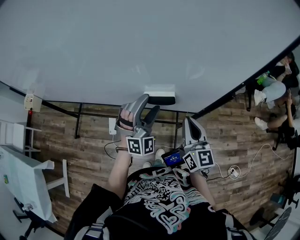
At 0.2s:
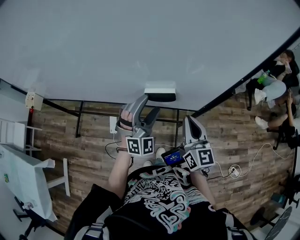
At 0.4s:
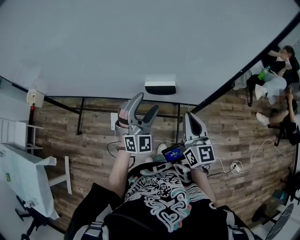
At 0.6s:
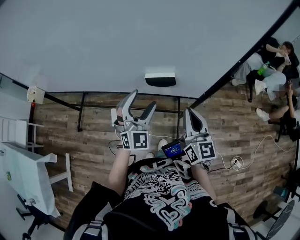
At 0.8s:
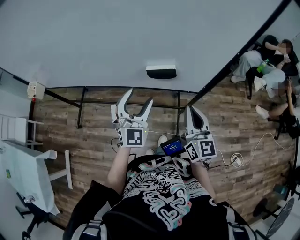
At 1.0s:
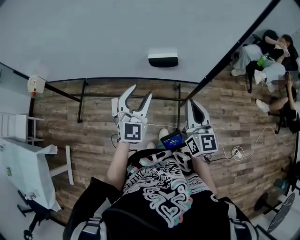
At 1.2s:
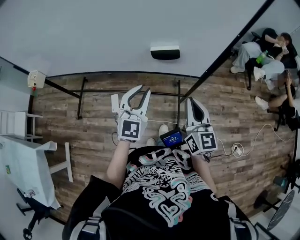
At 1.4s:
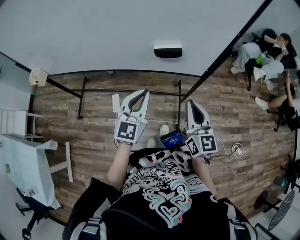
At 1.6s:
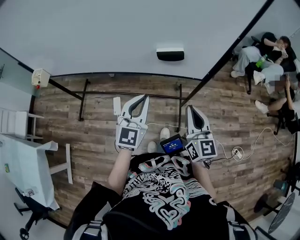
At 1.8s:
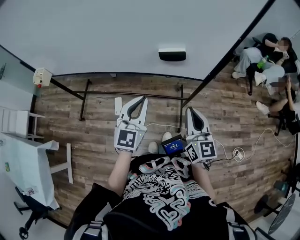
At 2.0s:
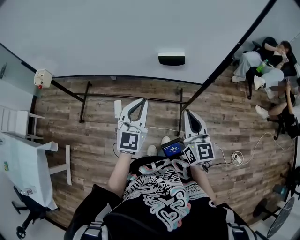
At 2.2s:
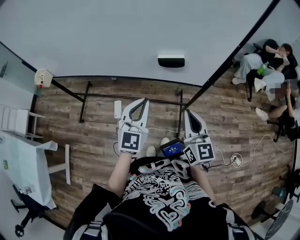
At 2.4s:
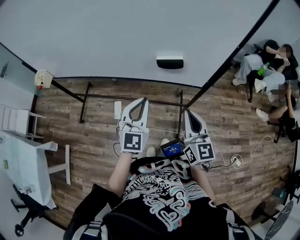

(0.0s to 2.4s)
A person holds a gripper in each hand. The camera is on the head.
0.0s - 1.2s: The left gripper moves backward and to the left, roughly 15 cm, rolls counterclockwise, seen from behind, by roughly 40 degrees, and closes its fingers, while the right gripper shifts roughly 10 cm backward.
1.2s - 2.4s: There are only small adjustments of the grippers.

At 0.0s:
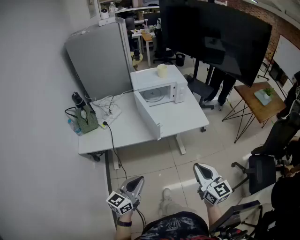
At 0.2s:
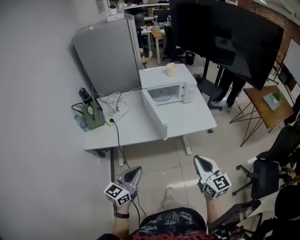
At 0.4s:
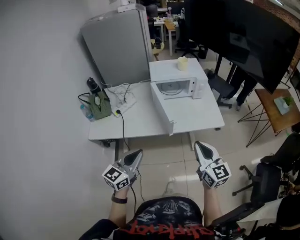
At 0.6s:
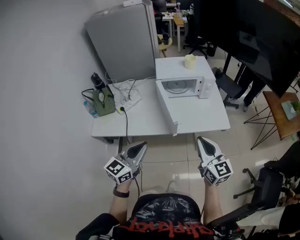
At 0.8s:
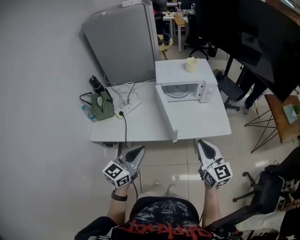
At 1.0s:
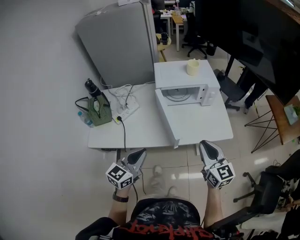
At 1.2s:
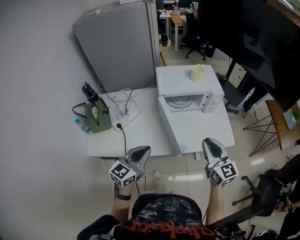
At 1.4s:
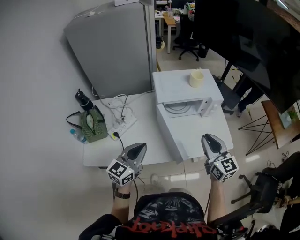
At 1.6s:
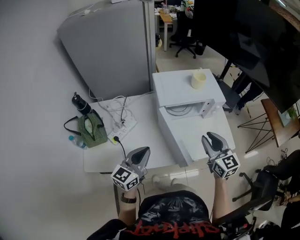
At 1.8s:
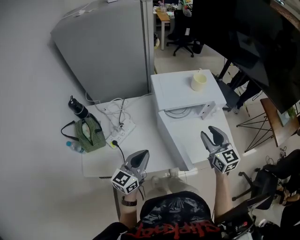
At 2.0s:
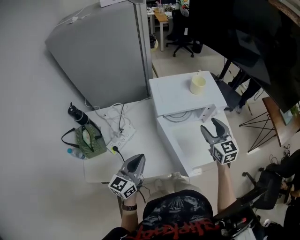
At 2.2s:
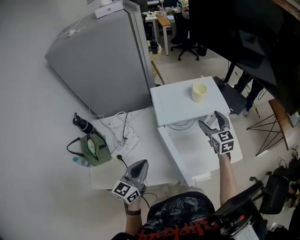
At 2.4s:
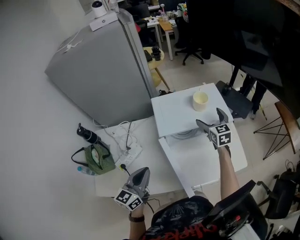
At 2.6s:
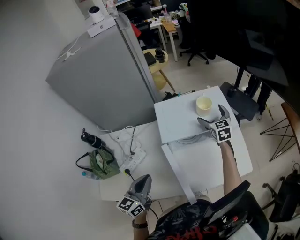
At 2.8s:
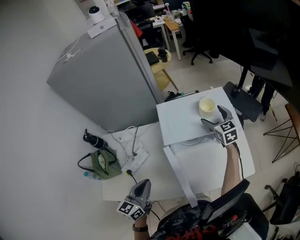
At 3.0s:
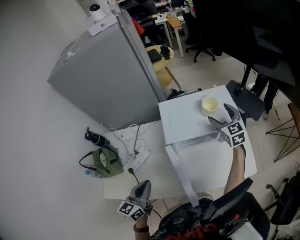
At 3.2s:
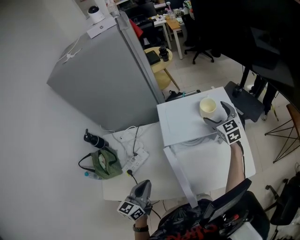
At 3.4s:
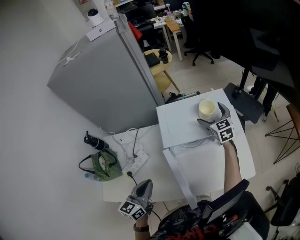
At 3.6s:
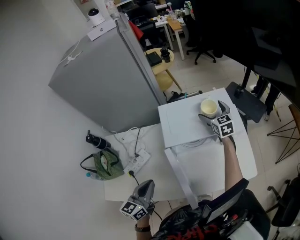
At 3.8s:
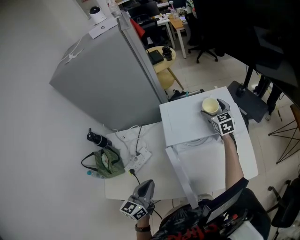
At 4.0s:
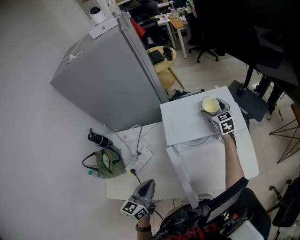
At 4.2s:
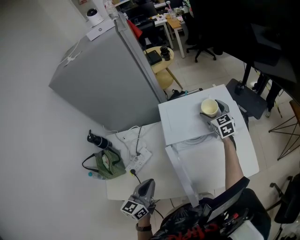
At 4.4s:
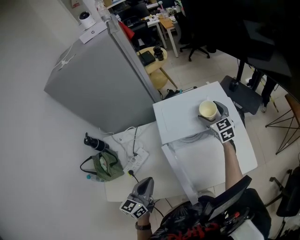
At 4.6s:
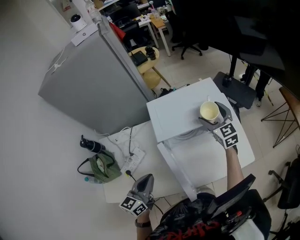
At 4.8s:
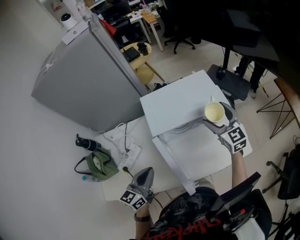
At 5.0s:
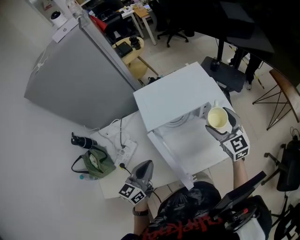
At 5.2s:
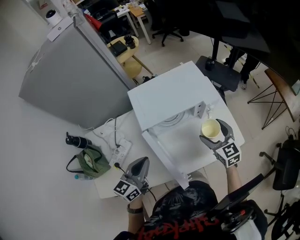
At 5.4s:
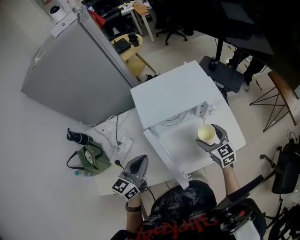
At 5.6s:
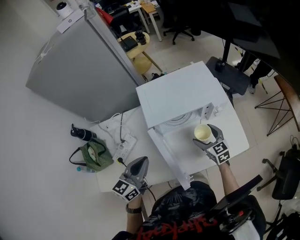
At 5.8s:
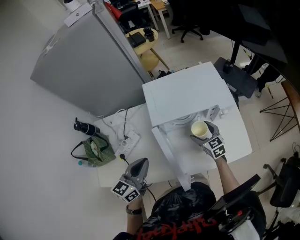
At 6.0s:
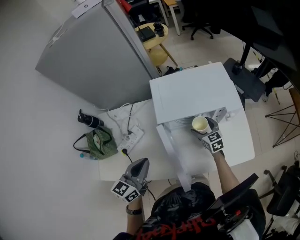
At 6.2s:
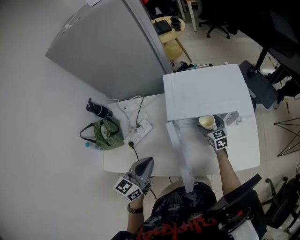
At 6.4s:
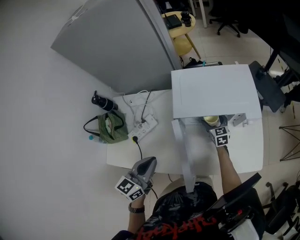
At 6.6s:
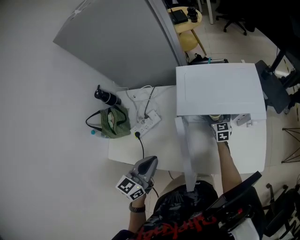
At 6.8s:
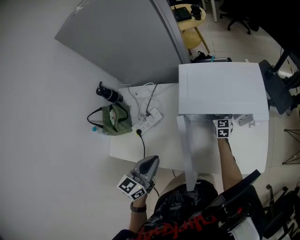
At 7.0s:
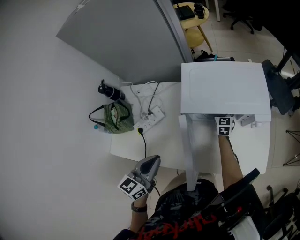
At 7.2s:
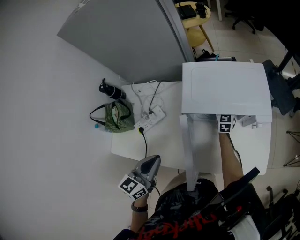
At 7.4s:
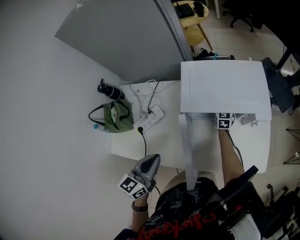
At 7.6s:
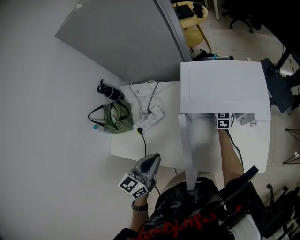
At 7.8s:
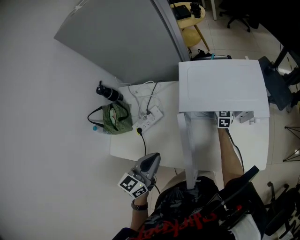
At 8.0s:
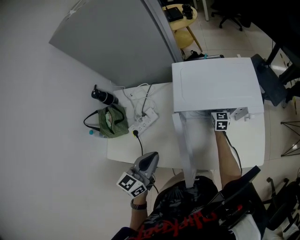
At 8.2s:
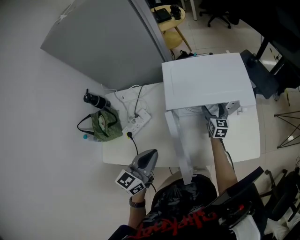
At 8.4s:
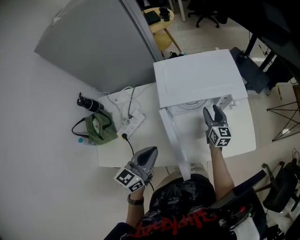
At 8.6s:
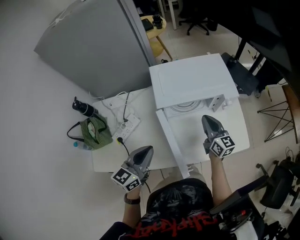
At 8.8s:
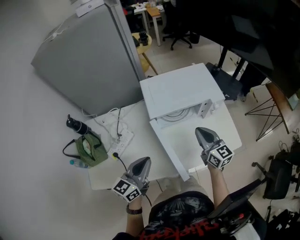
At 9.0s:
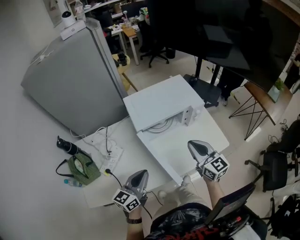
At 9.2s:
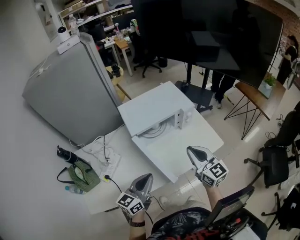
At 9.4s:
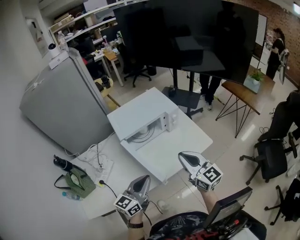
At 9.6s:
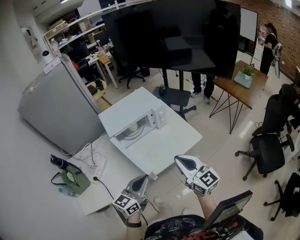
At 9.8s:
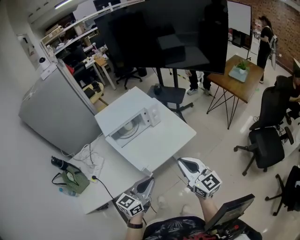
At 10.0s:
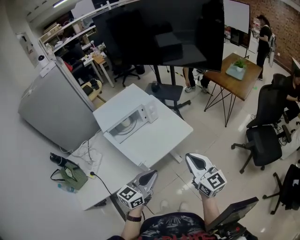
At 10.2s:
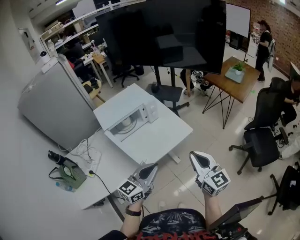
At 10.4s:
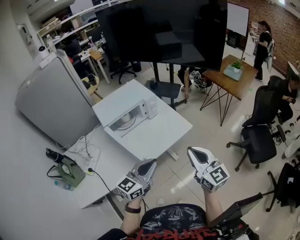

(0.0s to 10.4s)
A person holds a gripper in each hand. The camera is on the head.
0.0s - 1.4s: The pair of grippers is taken forward, approximately 40 cm.
1.4s - 3.0s: The right gripper is displaced forward by approximately 35 cm, and opens. The left gripper travels forward by some 10 cm, and changes its angle by roughly 20 degrees.
4.4s - 6.0s: The right gripper is displaced downward and backward by approximately 20 cm.
6.0s - 7.4s: The right gripper travels forward by roughly 15 cm.
7.4s - 9.0s: The right gripper goes some 40 cm backward and upward, and closes up. The left gripper shifts by approximately 5 cm, and turns by about 30 degrees.
9.0s - 10.4s: The right gripper goes roughly 30 cm to the right and backward. The left gripper goes some 25 cm to the right, and rotates some 30 degrees.

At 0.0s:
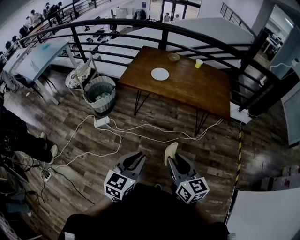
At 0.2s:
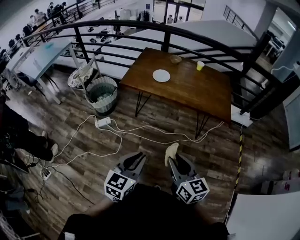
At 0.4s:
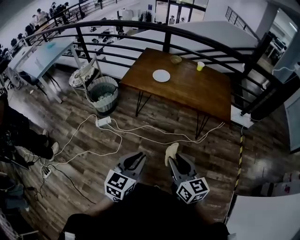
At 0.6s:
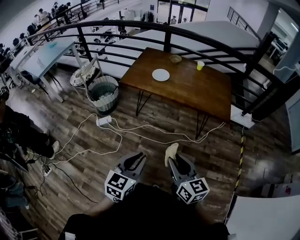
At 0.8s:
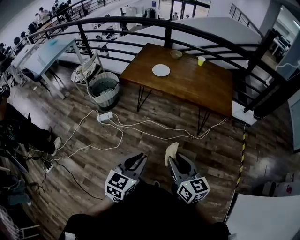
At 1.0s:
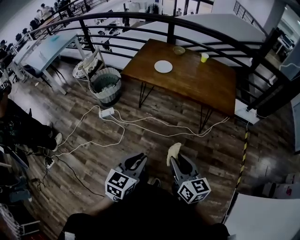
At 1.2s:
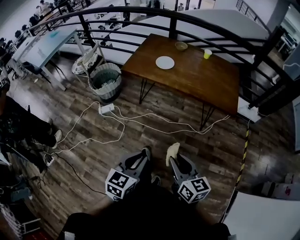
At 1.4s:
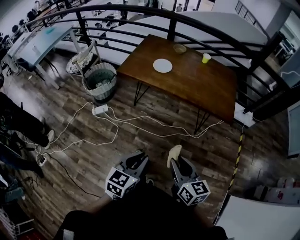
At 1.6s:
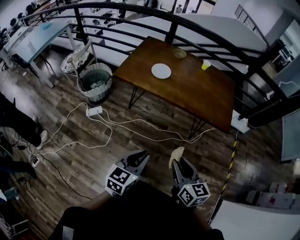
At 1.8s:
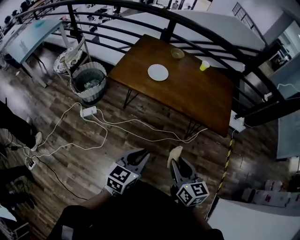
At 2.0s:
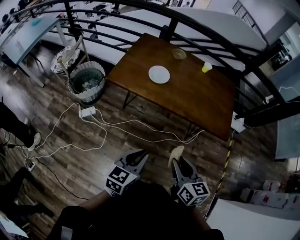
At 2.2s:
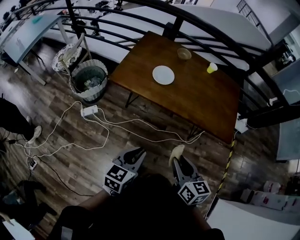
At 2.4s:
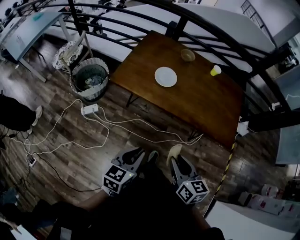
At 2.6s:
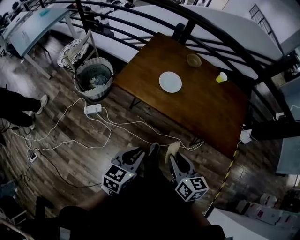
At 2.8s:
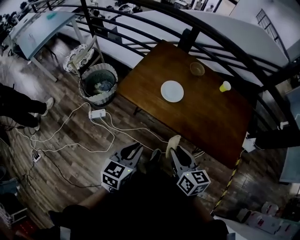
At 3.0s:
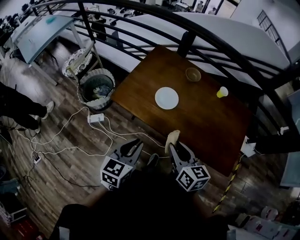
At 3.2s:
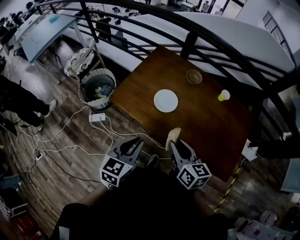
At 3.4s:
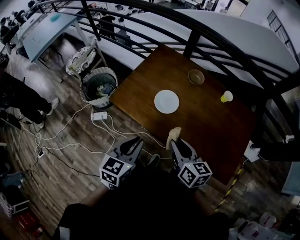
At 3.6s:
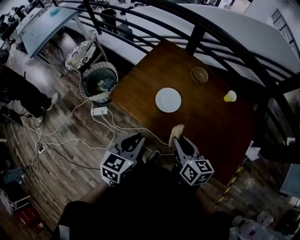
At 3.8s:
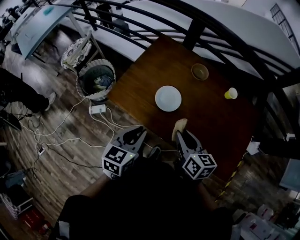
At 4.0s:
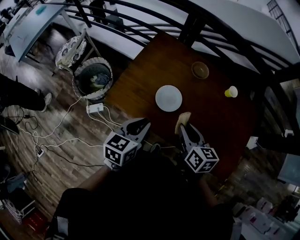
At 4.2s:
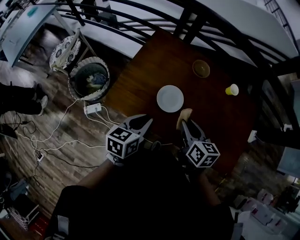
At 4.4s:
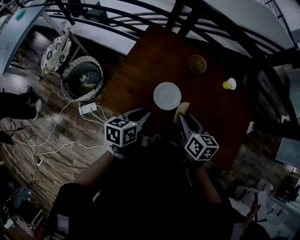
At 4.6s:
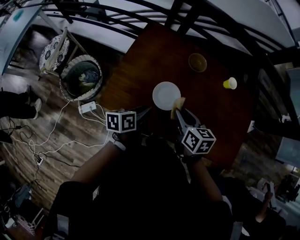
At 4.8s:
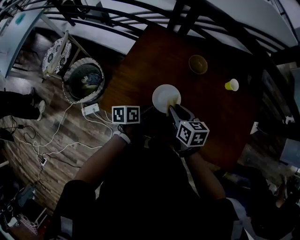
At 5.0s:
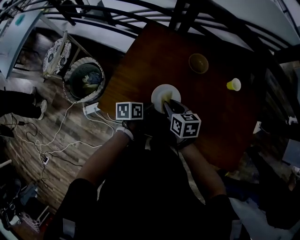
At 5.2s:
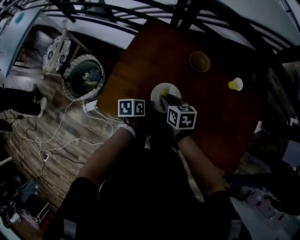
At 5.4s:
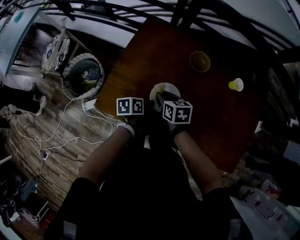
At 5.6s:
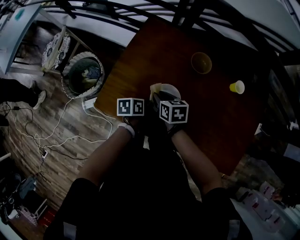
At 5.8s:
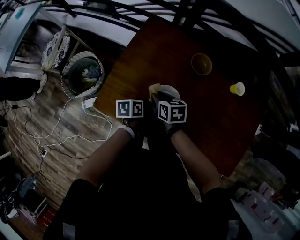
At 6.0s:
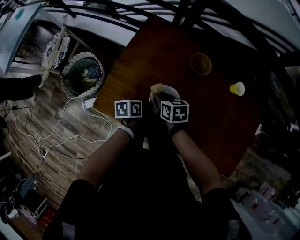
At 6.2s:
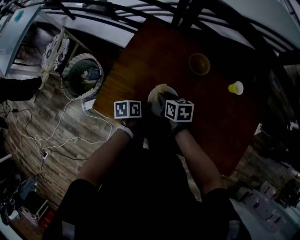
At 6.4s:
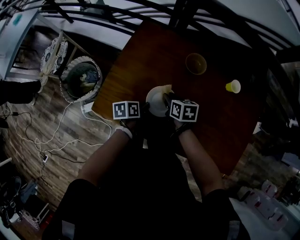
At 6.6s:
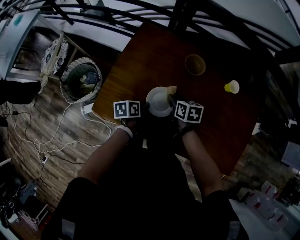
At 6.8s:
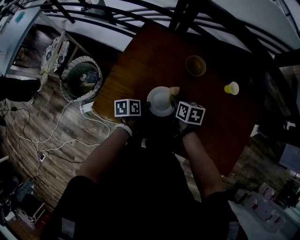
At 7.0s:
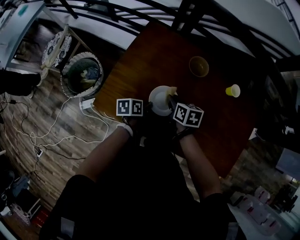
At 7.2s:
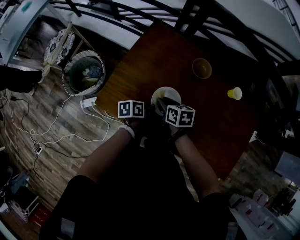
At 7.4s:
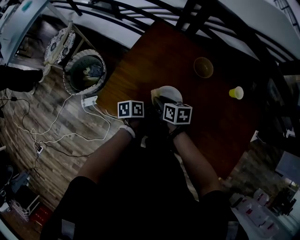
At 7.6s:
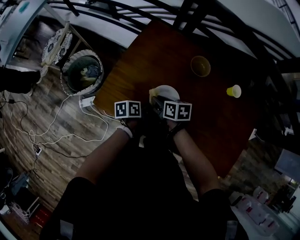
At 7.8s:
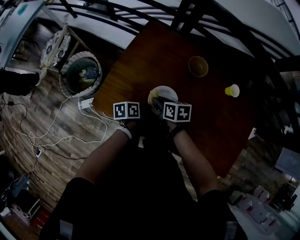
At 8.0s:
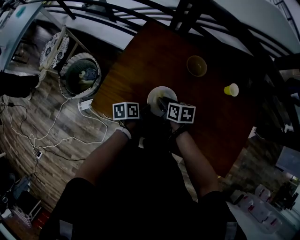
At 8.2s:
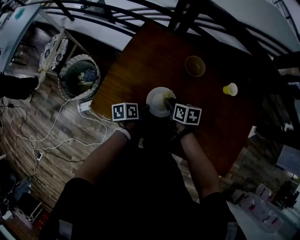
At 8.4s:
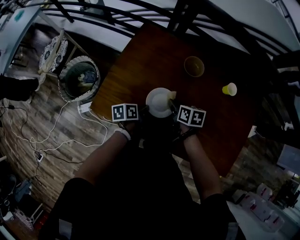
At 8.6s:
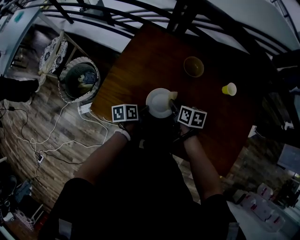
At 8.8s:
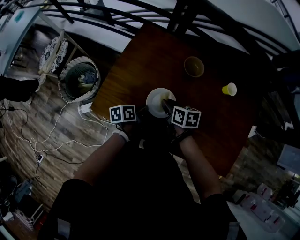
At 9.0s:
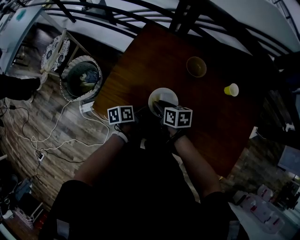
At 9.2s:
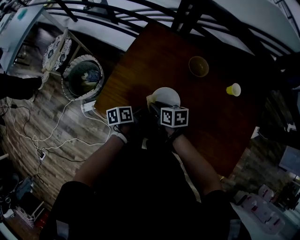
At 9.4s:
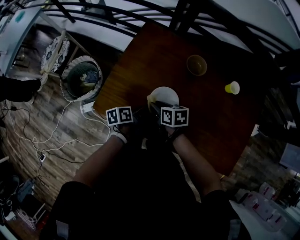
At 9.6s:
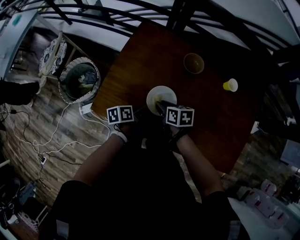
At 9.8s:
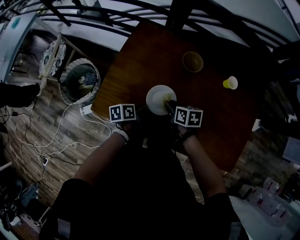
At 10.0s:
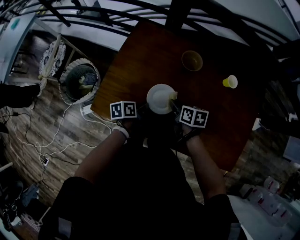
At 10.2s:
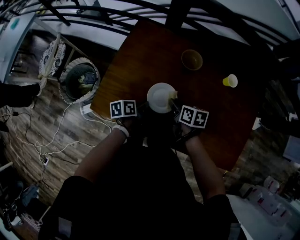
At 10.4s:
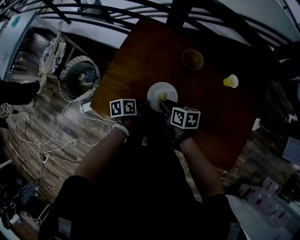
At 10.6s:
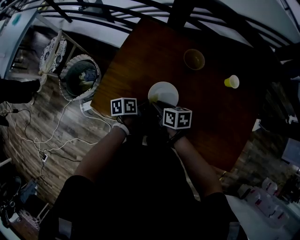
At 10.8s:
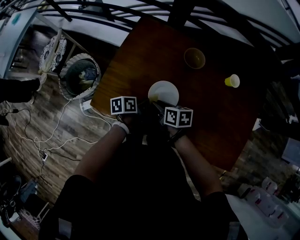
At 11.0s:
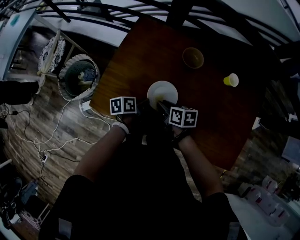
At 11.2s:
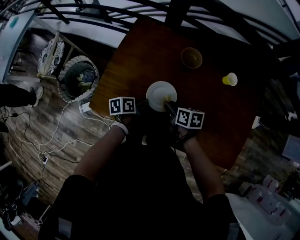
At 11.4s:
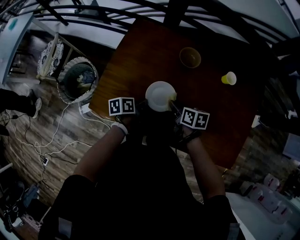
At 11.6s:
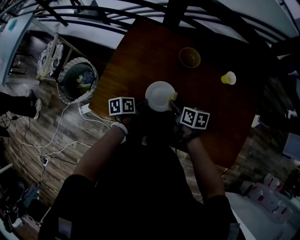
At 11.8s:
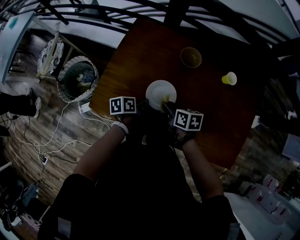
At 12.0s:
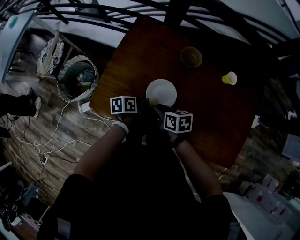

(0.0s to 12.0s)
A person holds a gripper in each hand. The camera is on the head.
0.0s - 1.6s: The left gripper goes some 15 cm forward, to the right and downward, while the right gripper shifts roughly 10 cm forward and to the right.
1.6s - 3.0s: Both grippers travel together forward, some 35 cm.
3.0s - 4.4s: The left gripper goes roughly 25 cm forward and downward, and turns by roughly 30 degrees, while the right gripper is displaced forward by approximately 20 cm.
4.4s - 6.0s: The left gripper travels downward and forward by some 20 cm, and rotates about 30 degrees, while the right gripper heads downward, forward and to the left, covering about 20 cm, and changes its angle by approximately 20 degrees.
6.0s - 7.6s: The right gripper travels to the right and back again, some 10 cm each way.
7.6s - 9.0s: The right gripper goes to the right and returns, roughly 10 cm each way.
9.0s - 10.4s: The right gripper moves approximately 10 cm to the right and comes back.
10.4s - 12.0s: The right gripper swings left and right, some 10 cm each way, with 2 reversals.
